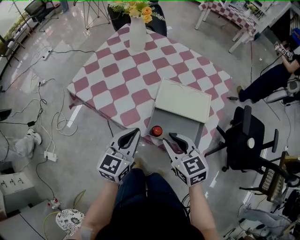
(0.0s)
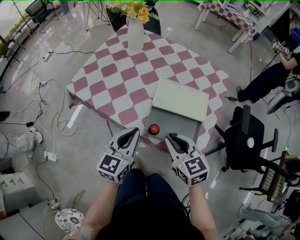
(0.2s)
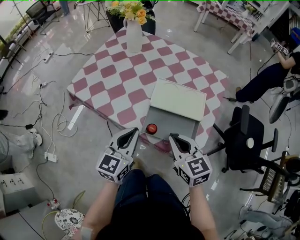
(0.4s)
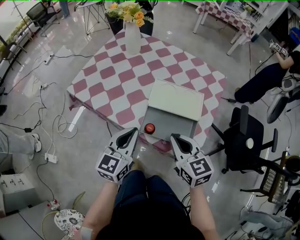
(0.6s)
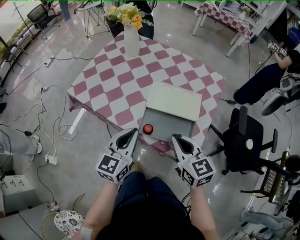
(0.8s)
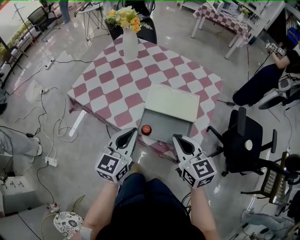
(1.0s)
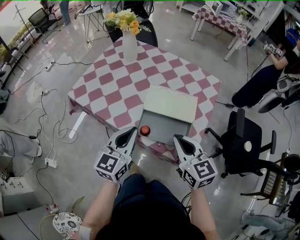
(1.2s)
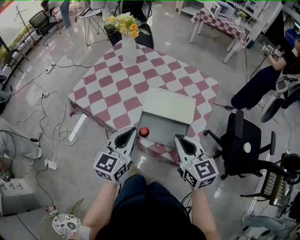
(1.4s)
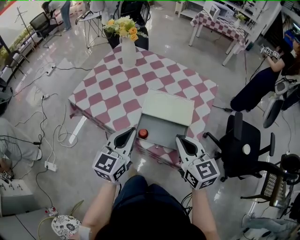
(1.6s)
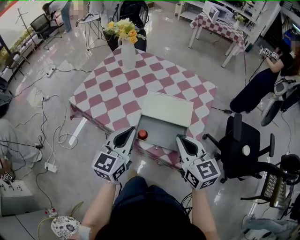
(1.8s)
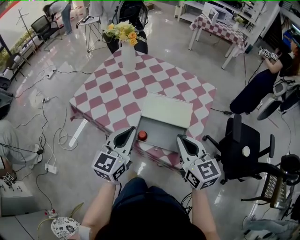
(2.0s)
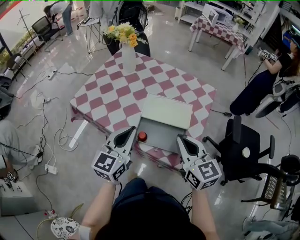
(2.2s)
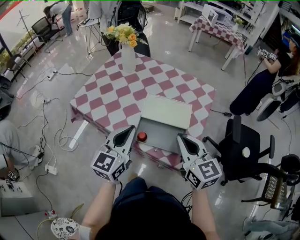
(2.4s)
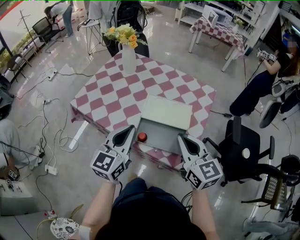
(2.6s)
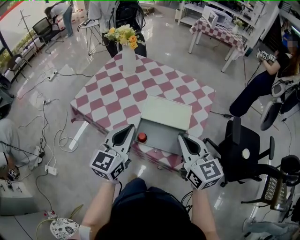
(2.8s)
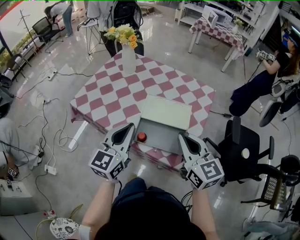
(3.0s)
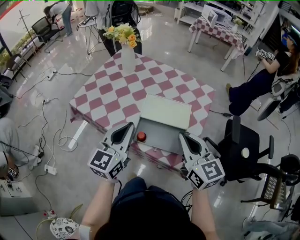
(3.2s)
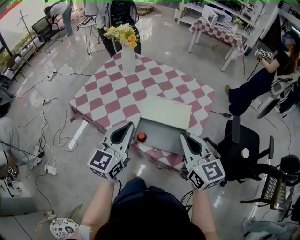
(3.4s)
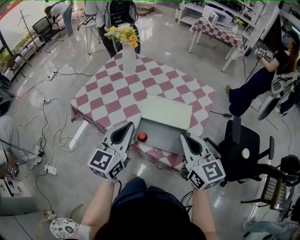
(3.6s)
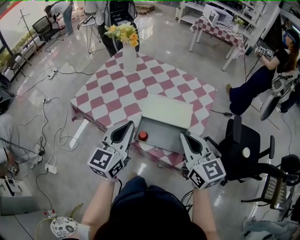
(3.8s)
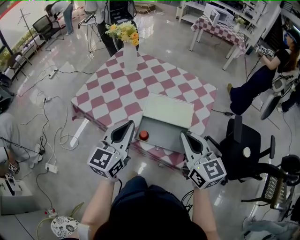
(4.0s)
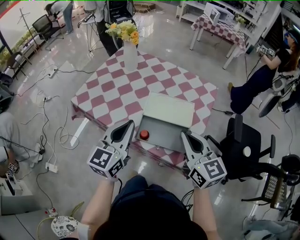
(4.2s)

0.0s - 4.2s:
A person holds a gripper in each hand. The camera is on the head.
0.0s - 1.4s: The right gripper is displaced upward and to the right by about 10 cm, and closes; the left gripper heads upward, covering roughly 5 cm.
1.4s - 2.8s: Both grippers move upward, some 5 cm.
2.8s - 4.2s: Neither gripper changes place.

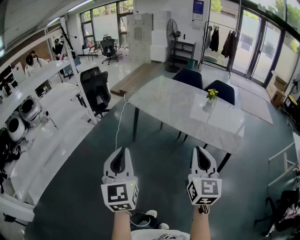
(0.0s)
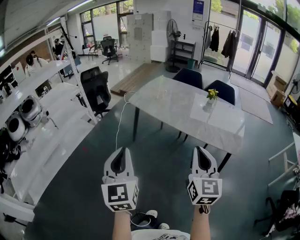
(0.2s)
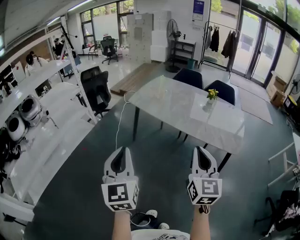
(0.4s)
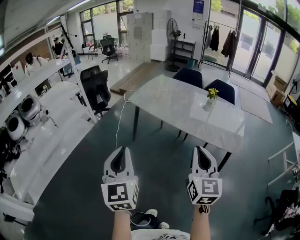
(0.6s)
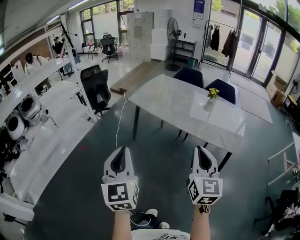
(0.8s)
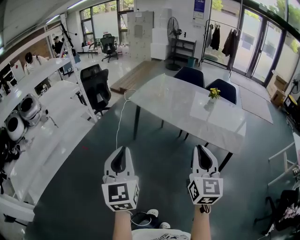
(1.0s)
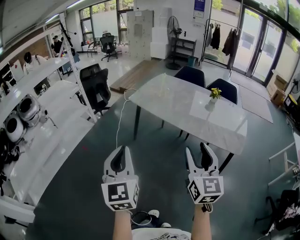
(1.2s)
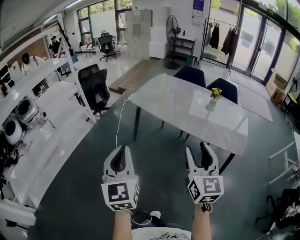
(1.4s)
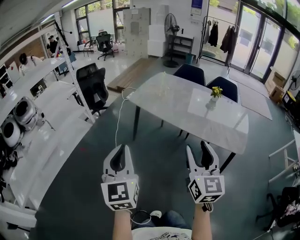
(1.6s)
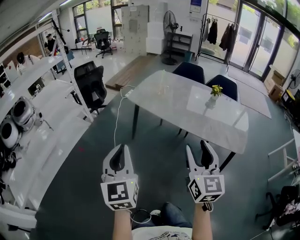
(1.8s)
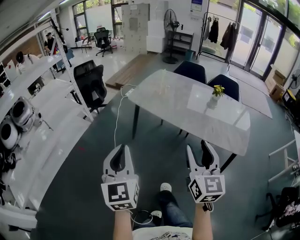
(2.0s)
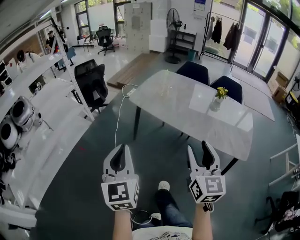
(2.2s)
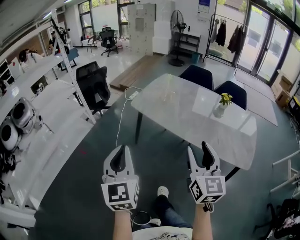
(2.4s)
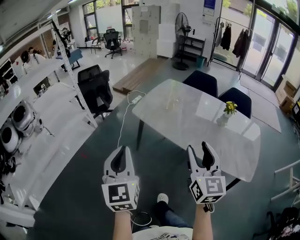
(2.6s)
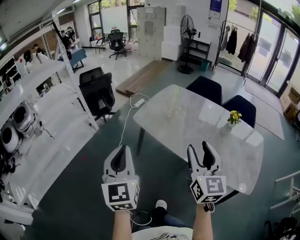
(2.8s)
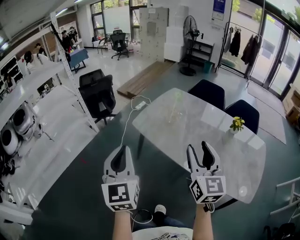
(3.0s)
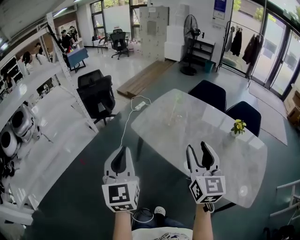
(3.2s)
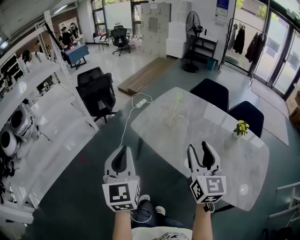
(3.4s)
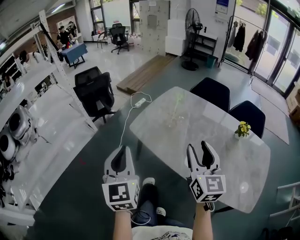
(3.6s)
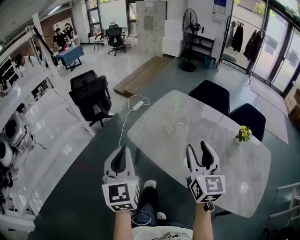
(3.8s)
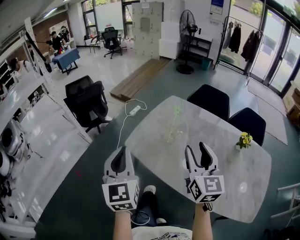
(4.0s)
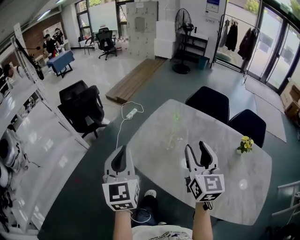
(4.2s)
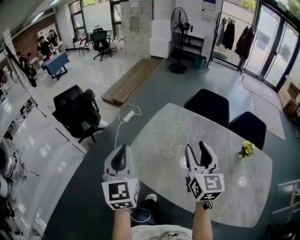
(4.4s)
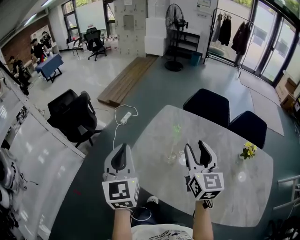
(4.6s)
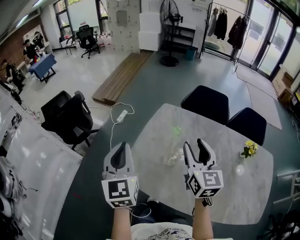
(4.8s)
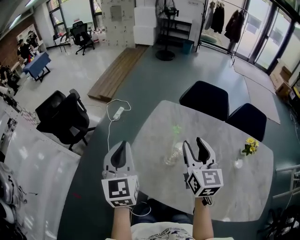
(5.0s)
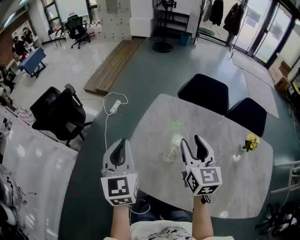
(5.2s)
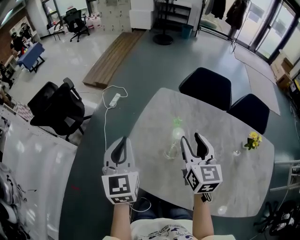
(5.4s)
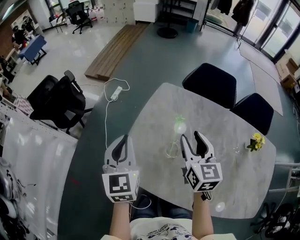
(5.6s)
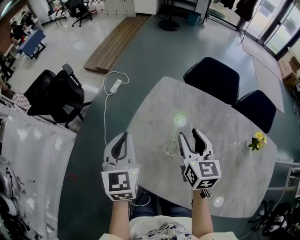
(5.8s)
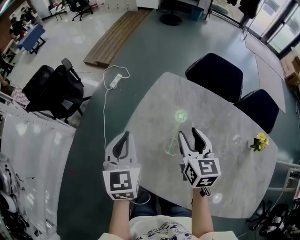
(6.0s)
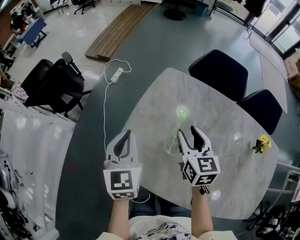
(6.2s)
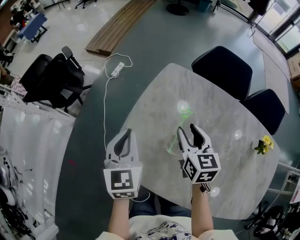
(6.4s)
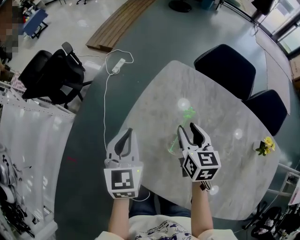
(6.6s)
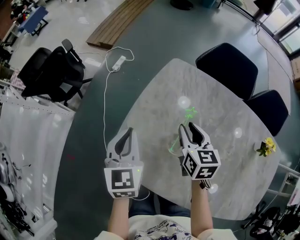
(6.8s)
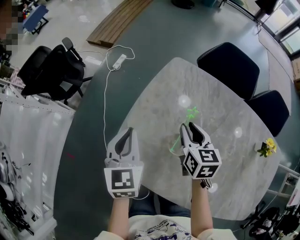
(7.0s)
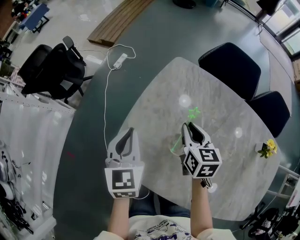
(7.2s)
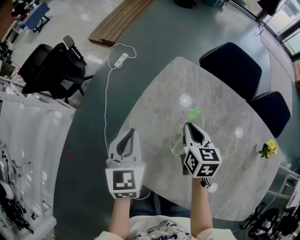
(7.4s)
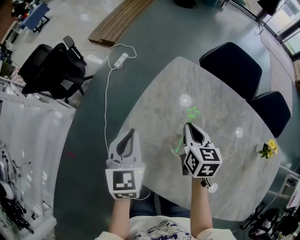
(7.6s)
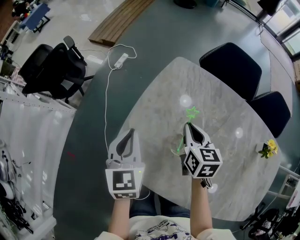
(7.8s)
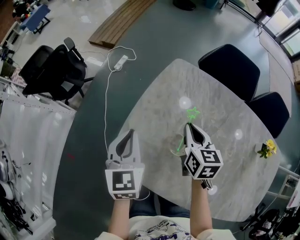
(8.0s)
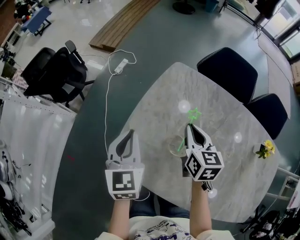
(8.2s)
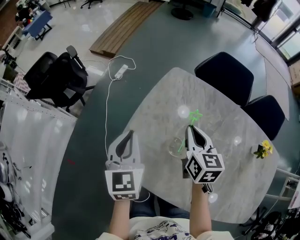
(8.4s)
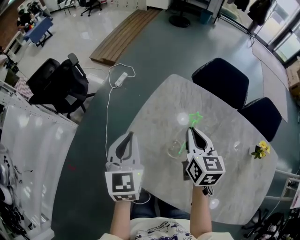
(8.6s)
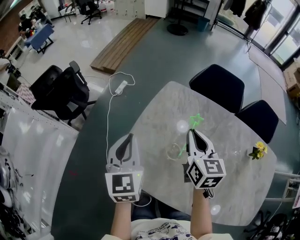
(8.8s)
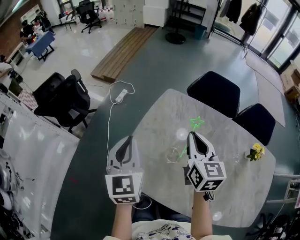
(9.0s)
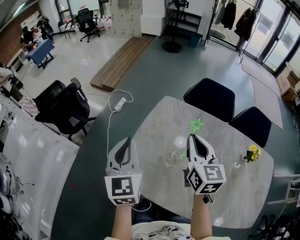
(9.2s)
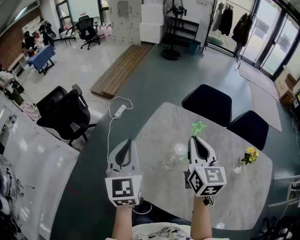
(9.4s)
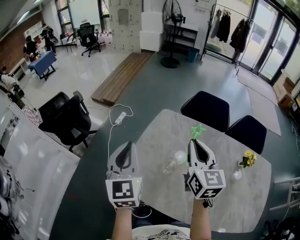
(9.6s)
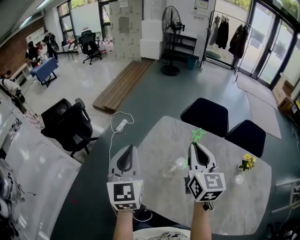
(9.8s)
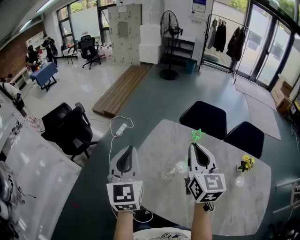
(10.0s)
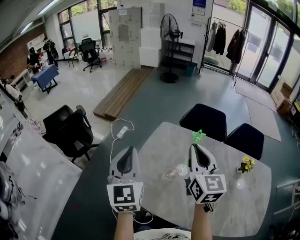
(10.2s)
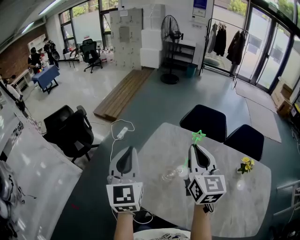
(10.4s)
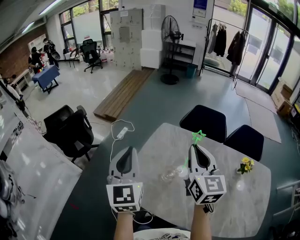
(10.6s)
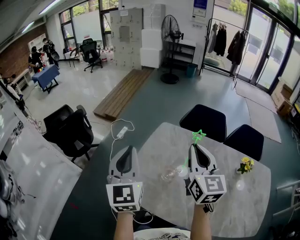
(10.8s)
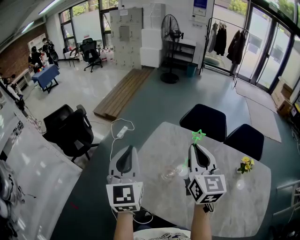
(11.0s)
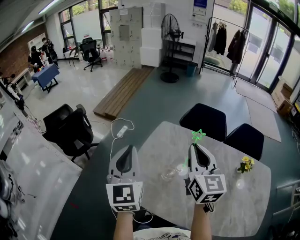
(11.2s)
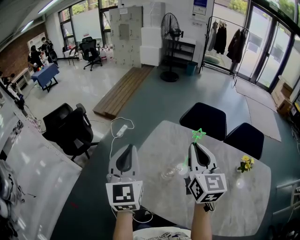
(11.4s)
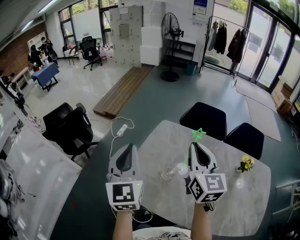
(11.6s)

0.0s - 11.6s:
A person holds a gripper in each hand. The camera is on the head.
0.0s - 1.4s: The right gripper moves some 5 cm, and opens up, while the left gripper changes place by roughly 5 cm.
1.4s - 2.8s: Both grippers move forward, roughly 25 cm.
2.8s - 4.4s: The two grippers go some 40 cm forward.
4.4s - 5.8s: Both grippers travel together forward and downward, about 20 cm.
5.8s - 7.2s: Both grippers travel together downward, approximately 10 cm. The right gripper closes.
7.2s - 8.8s: The two grippers go some 10 cm upward.
8.8s - 10.2s: The two grippers go approximately 15 cm upward. The right gripper turns by some 20 degrees.
10.2s - 11.6s: Both grippers stay put.

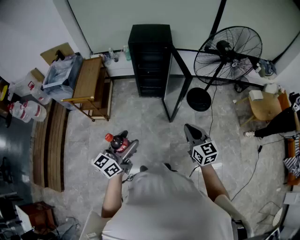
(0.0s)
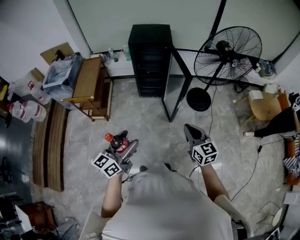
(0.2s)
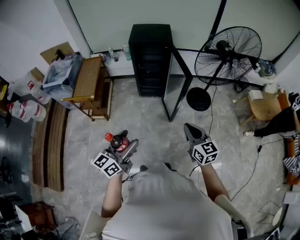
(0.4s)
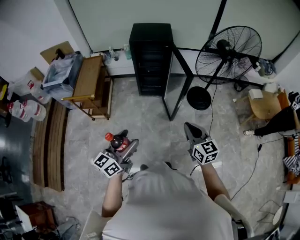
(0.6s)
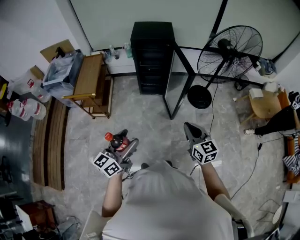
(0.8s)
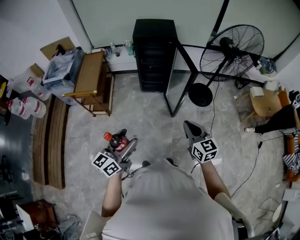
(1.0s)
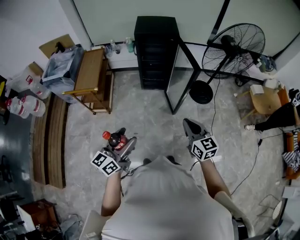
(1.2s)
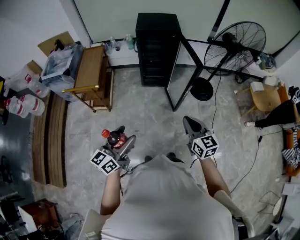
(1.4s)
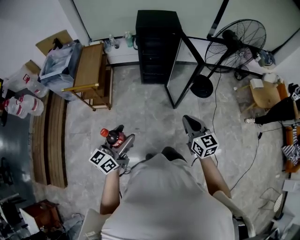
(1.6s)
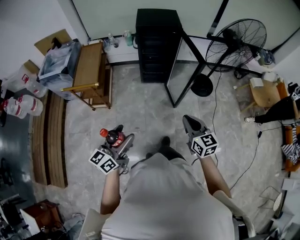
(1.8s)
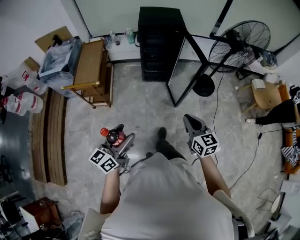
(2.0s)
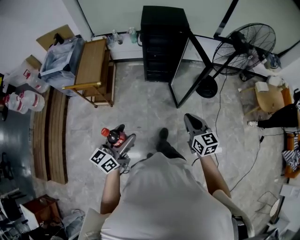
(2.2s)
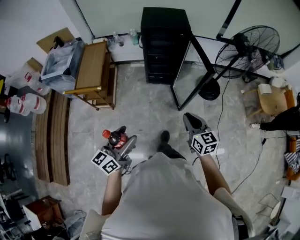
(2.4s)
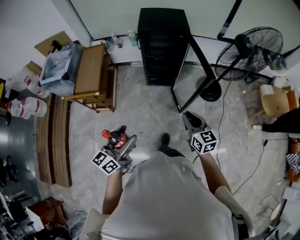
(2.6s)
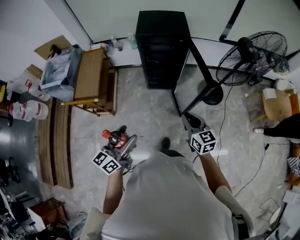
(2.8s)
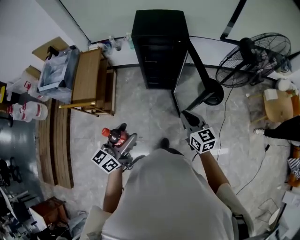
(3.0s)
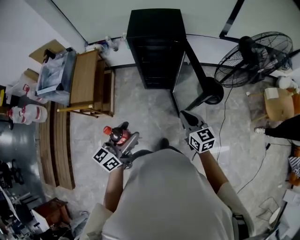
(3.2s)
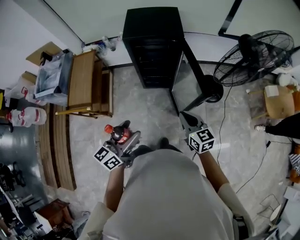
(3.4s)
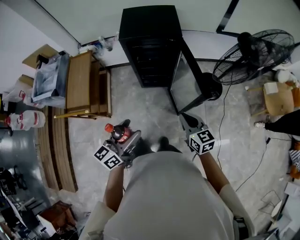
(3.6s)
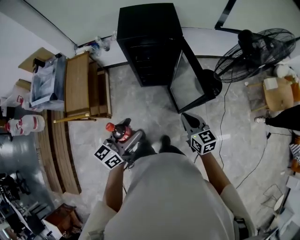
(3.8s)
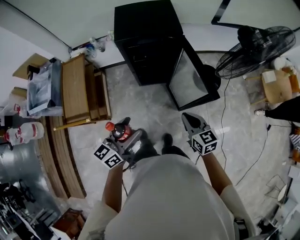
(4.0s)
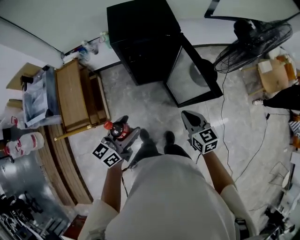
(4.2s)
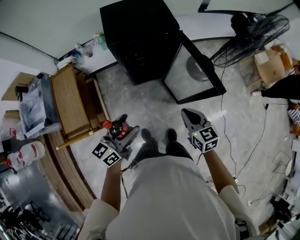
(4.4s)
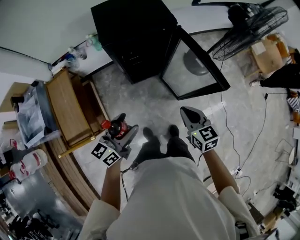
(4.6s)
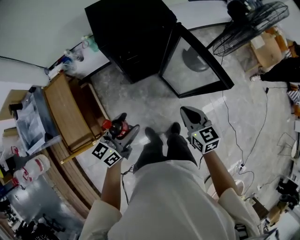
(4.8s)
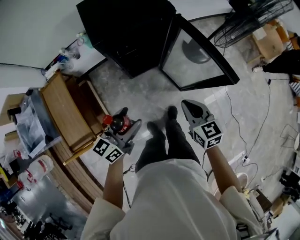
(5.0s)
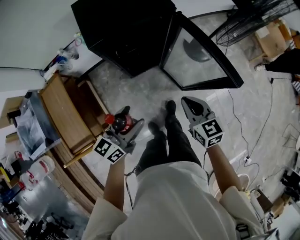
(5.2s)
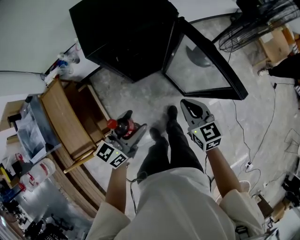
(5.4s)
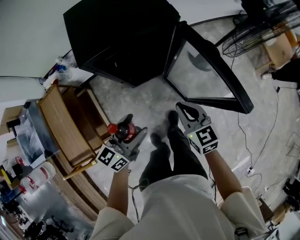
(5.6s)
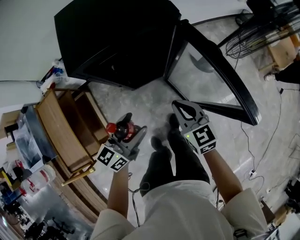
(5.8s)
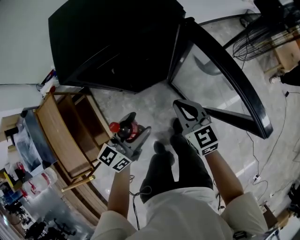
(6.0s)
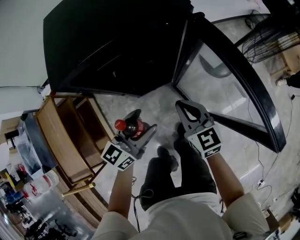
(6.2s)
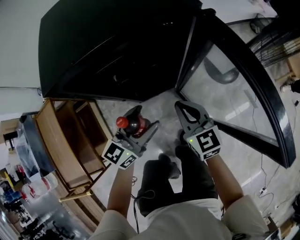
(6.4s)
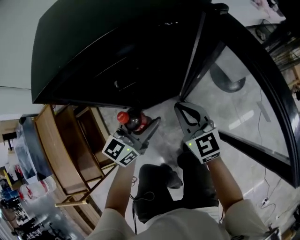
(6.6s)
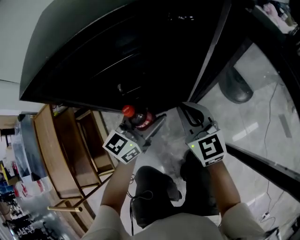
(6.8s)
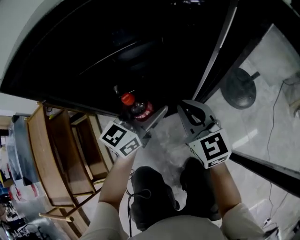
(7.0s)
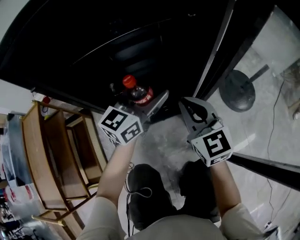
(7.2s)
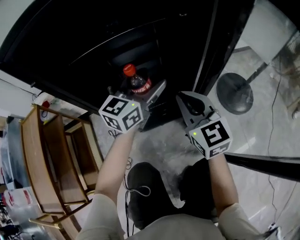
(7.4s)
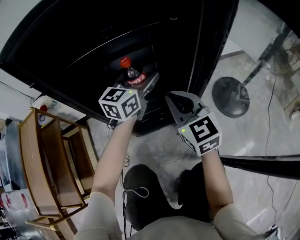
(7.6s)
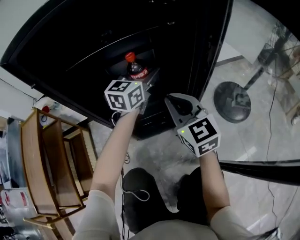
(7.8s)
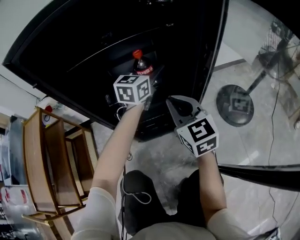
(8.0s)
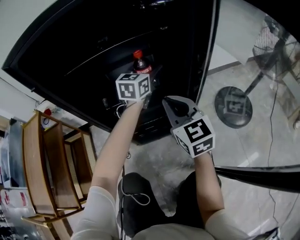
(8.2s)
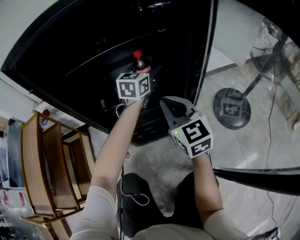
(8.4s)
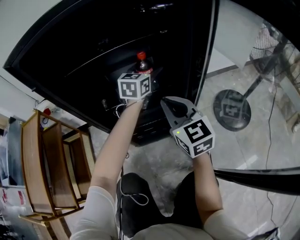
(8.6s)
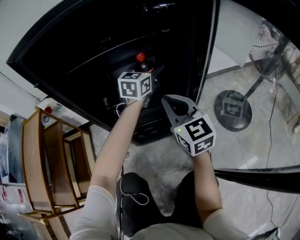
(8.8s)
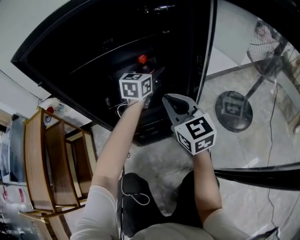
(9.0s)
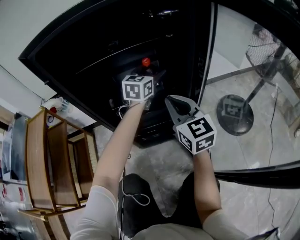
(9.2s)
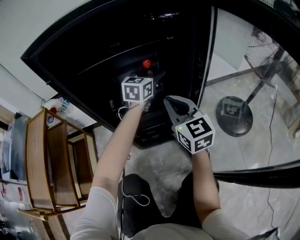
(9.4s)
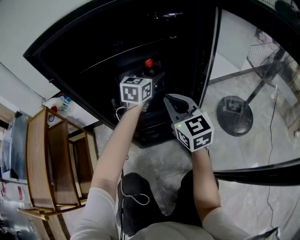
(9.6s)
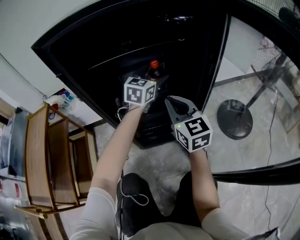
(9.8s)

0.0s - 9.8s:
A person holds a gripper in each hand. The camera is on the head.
0.0s - 1.4s: The grippers both shift to the left by roughly 10 cm.
1.4s - 2.8s: Both grippers travel together forward, roughly 20 cm.
2.8s - 4.2s: The left gripper travels forward by approximately 25 cm, while the right gripper is displaced forward by approximately 15 cm.
4.2s - 5.6s: The left gripper is displaced forward and downward by some 25 cm. The right gripper travels forward, downward and to the left by approximately 20 cm.
5.6s - 7.0s: Both grippers travel together downward and forward, some 35 cm.
7.0s - 8.4s: The left gripper travels forward by roughly 20 cm, and swivels approximately 20 degrees.
8.4s - 9.8s: The left gripper shifts by some 5 cm.
